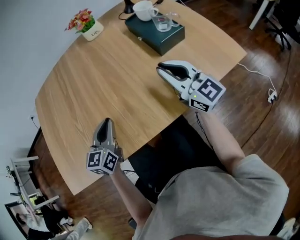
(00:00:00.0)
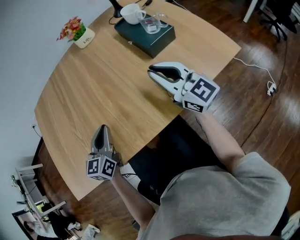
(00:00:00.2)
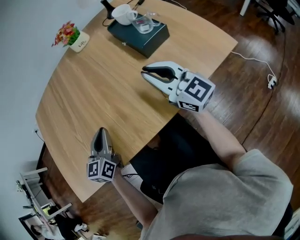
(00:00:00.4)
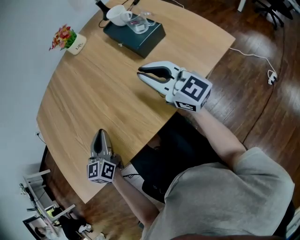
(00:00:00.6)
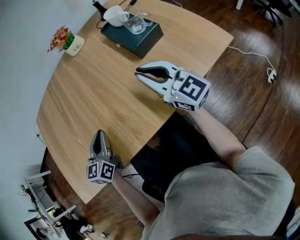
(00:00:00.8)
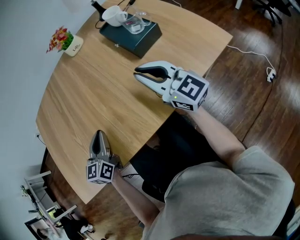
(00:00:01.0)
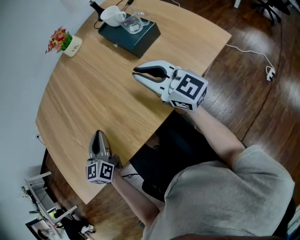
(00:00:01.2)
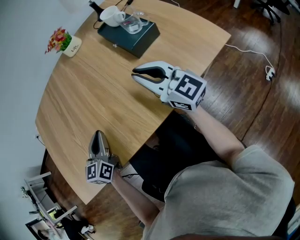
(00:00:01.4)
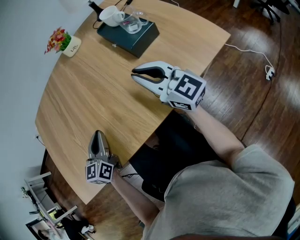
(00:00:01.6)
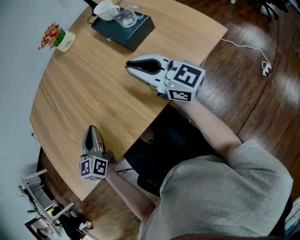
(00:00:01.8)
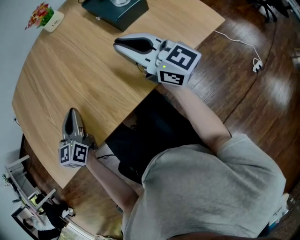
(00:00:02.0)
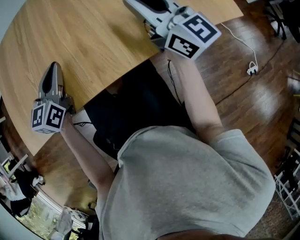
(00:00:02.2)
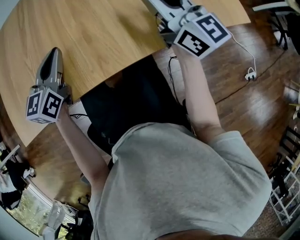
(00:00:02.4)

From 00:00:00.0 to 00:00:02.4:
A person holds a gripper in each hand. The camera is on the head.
From 00:00:00.0 to 00:00:01.2: Neither gripper changes place.
From 00:00:01.2 to 00:00:02.4: The grippers move only a little.

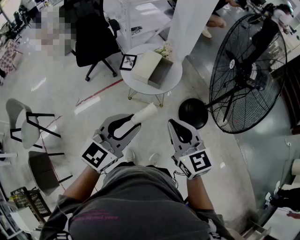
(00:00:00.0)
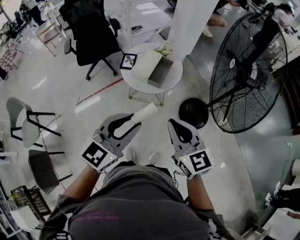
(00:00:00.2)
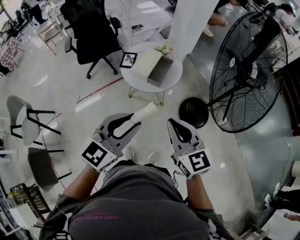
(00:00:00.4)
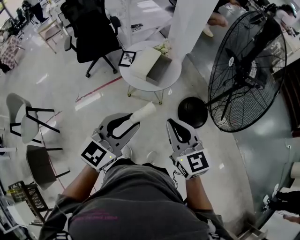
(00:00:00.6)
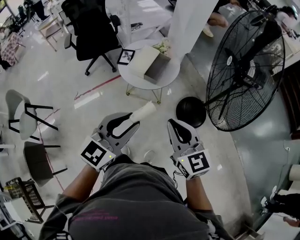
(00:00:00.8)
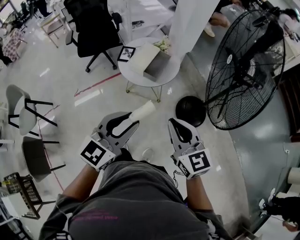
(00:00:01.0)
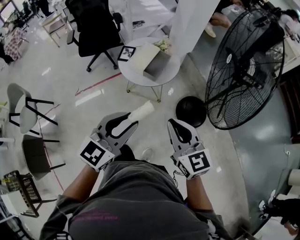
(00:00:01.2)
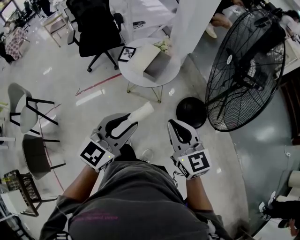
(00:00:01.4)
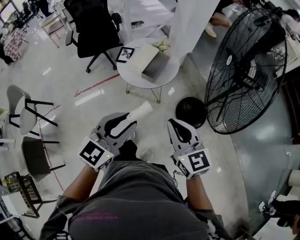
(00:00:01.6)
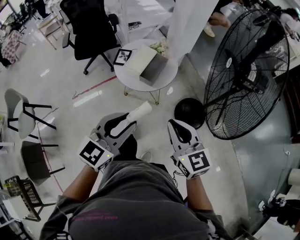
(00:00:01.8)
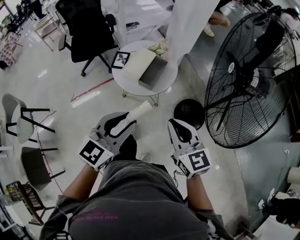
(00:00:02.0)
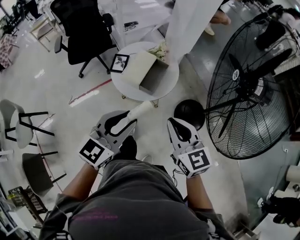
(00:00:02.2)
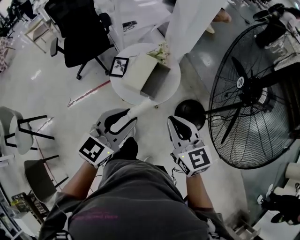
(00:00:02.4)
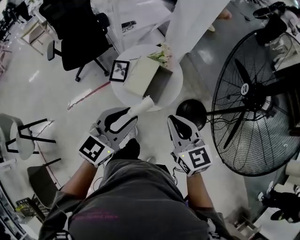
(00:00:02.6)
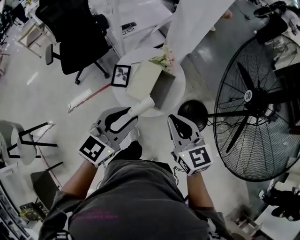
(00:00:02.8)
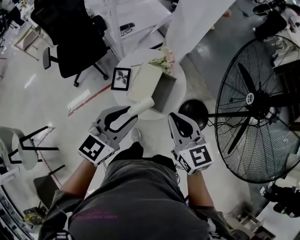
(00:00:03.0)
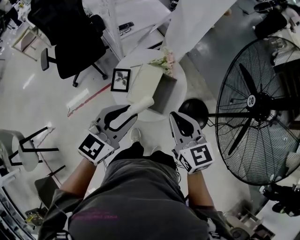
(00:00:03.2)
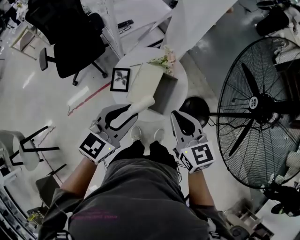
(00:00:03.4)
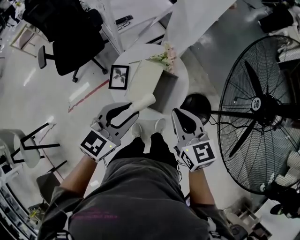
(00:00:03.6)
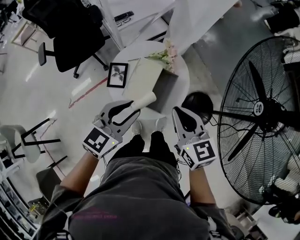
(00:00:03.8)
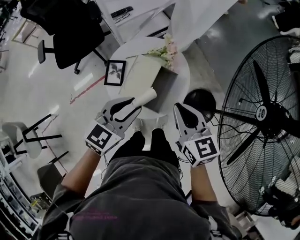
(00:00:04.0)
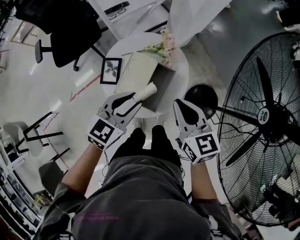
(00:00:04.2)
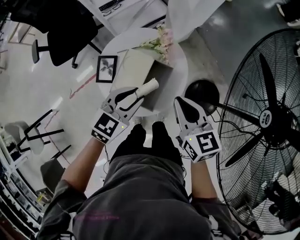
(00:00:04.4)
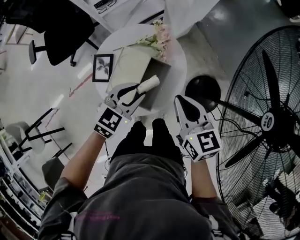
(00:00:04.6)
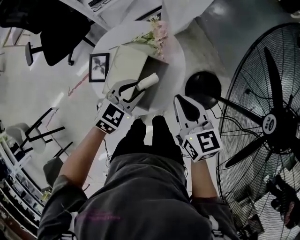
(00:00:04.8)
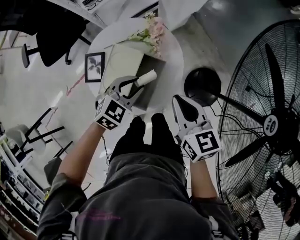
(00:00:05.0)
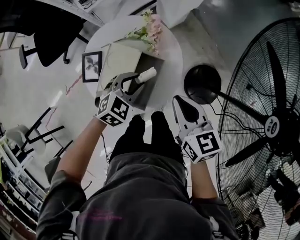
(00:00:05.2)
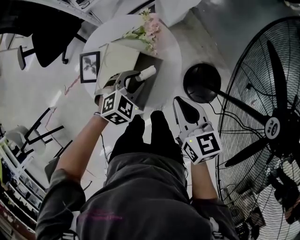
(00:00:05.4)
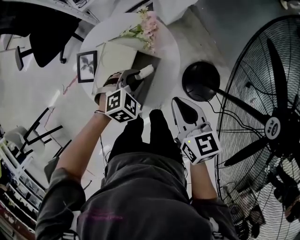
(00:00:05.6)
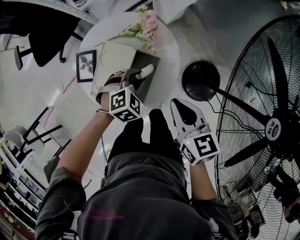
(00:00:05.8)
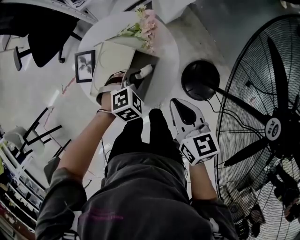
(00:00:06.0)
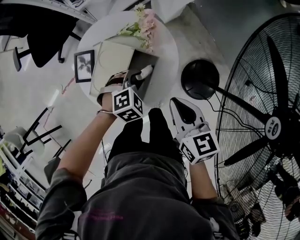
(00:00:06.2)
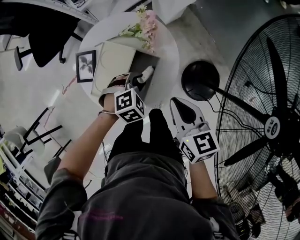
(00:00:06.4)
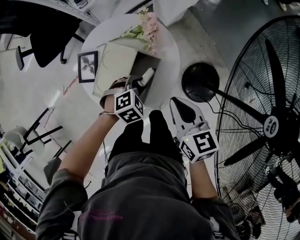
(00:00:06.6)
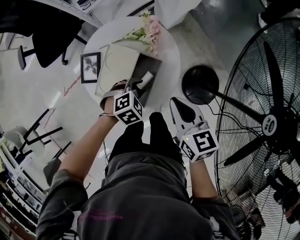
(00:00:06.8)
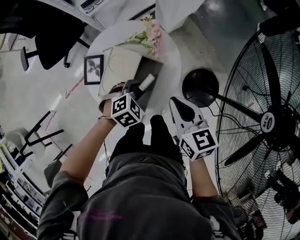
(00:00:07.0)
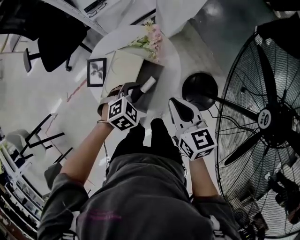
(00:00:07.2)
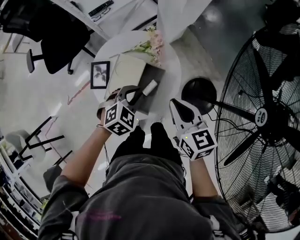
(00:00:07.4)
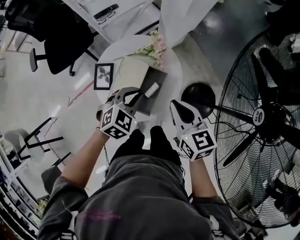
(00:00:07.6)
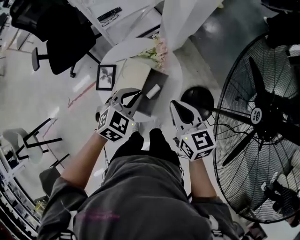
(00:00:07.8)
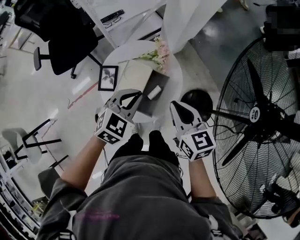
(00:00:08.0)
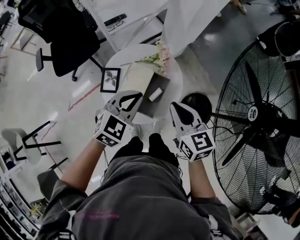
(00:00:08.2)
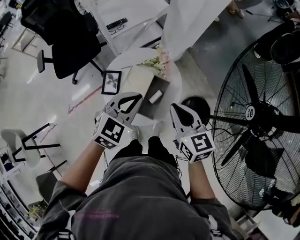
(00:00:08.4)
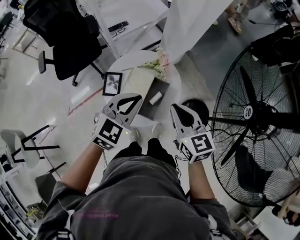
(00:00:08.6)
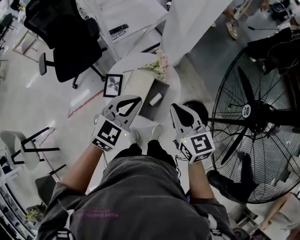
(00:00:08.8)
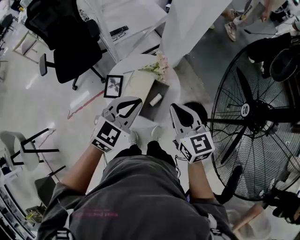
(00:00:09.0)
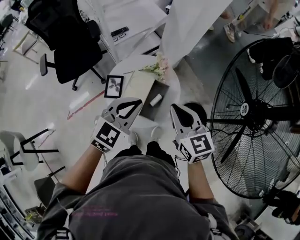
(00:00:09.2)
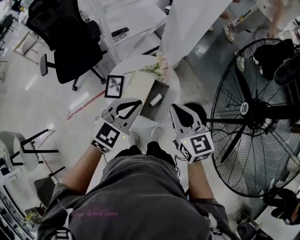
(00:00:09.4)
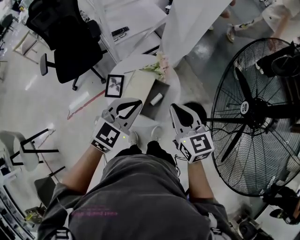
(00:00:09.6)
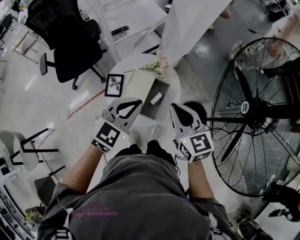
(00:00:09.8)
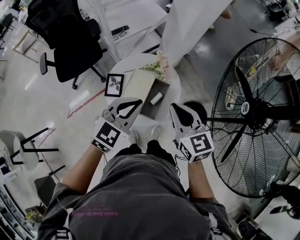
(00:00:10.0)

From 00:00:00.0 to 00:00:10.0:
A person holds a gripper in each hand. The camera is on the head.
From 00:00:00.0 to 00:00:01.4: Both grippers travel together to the right, roughly 5 cm.
From 00:00:01.4 to 00:00:02.8: The right gripper shifts roughly 30 cm forward and to the left. Meanwhile the left gripper is displaced forward by roughly 30 cm.
From 00:00:02.8 to 00:00:04.2: Both grippers travel together forward and downward, roughly 20 cm.
From 00:00:04.2 to 00:00:05.8: The left gripper moves downward and to the right, some 25 cm, and angles its fingers downward, by about 30 degrees. Meanwhile the right gripper goes about 15 cm downward and to the right.
From 00:00:05.8 to 00:00:07.2: The left gripper shifts by some 5 cm.
From 00:00:07.2 to 00:00:08.6: The left gripper travels upward by about 25 cm, tips its fingers upward by roughly 30 degrees, and closes. Meanwhile the right gripper moves upward and to the left, roughly 15 cm.
From 00:00:08.6 to 00:00:10.0: The grippers move only a little.

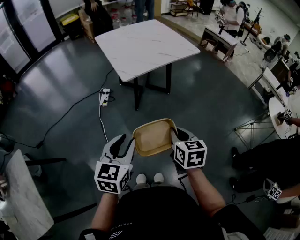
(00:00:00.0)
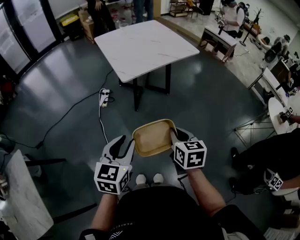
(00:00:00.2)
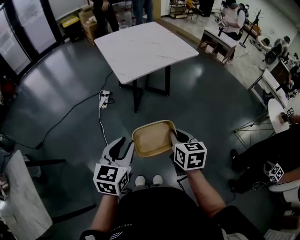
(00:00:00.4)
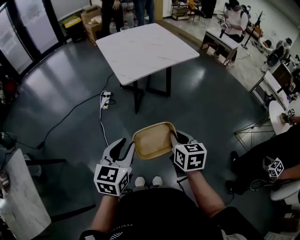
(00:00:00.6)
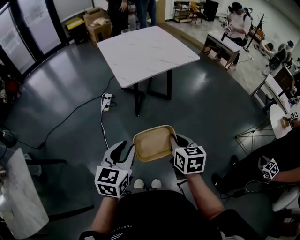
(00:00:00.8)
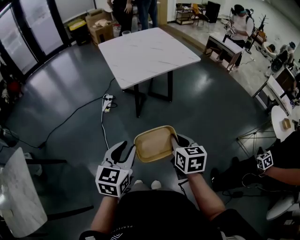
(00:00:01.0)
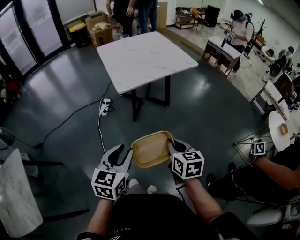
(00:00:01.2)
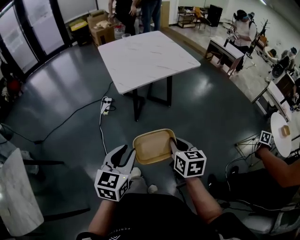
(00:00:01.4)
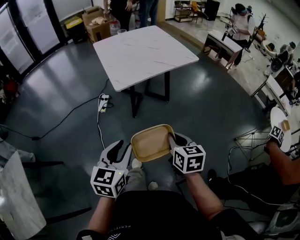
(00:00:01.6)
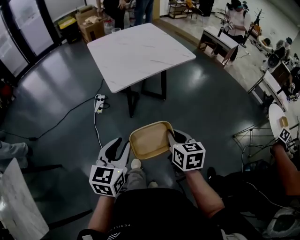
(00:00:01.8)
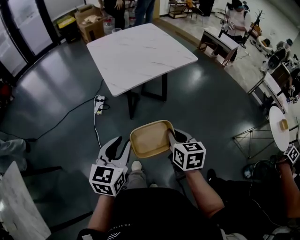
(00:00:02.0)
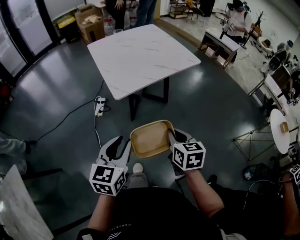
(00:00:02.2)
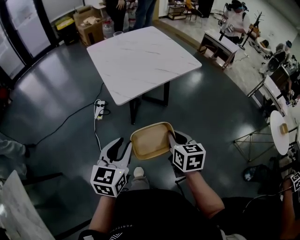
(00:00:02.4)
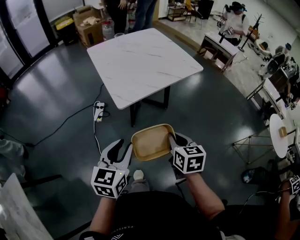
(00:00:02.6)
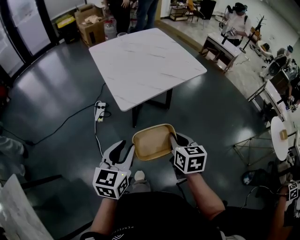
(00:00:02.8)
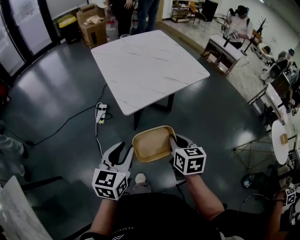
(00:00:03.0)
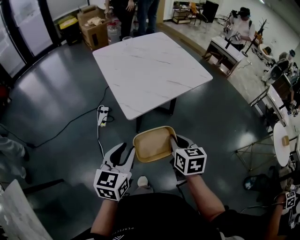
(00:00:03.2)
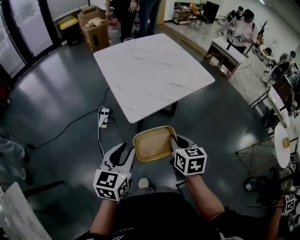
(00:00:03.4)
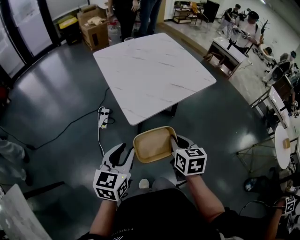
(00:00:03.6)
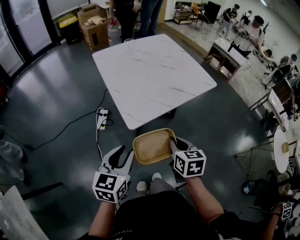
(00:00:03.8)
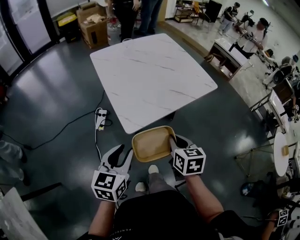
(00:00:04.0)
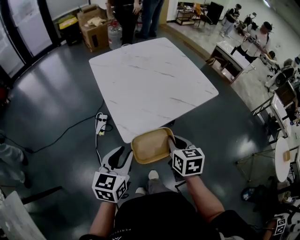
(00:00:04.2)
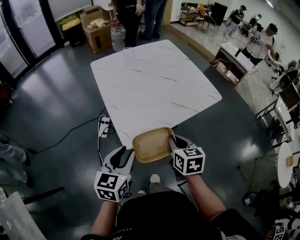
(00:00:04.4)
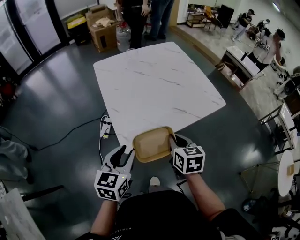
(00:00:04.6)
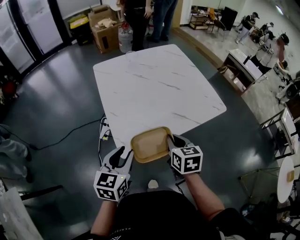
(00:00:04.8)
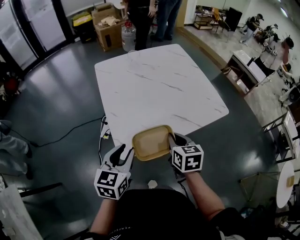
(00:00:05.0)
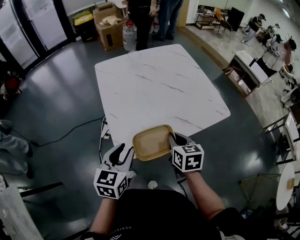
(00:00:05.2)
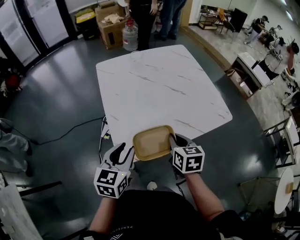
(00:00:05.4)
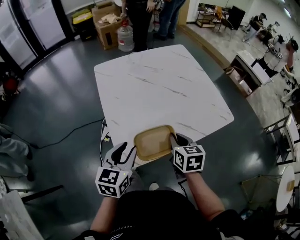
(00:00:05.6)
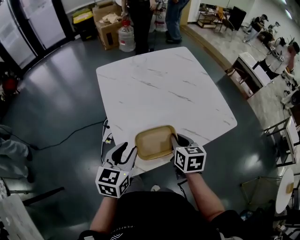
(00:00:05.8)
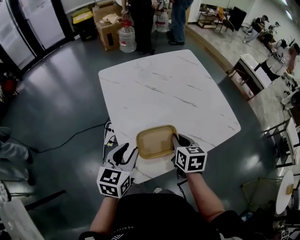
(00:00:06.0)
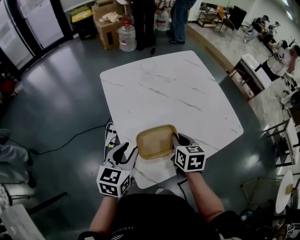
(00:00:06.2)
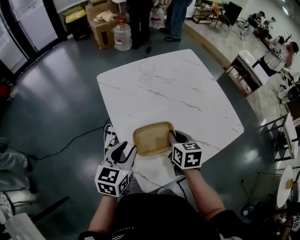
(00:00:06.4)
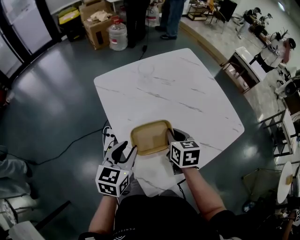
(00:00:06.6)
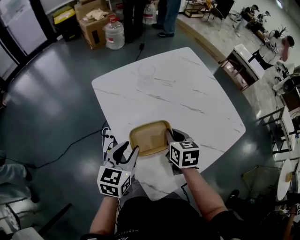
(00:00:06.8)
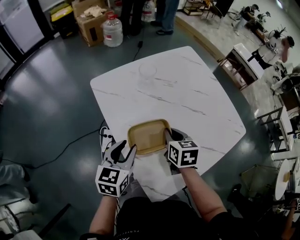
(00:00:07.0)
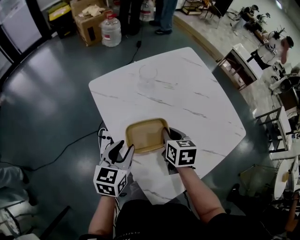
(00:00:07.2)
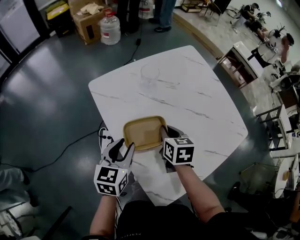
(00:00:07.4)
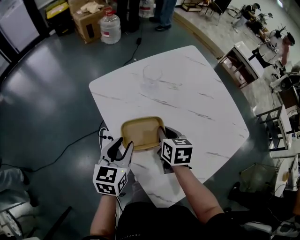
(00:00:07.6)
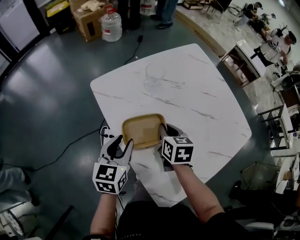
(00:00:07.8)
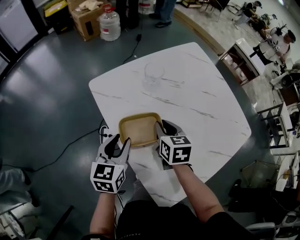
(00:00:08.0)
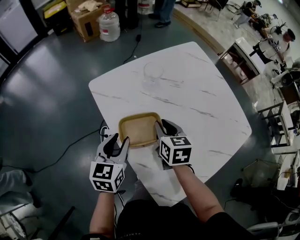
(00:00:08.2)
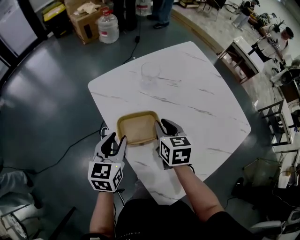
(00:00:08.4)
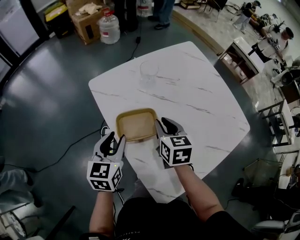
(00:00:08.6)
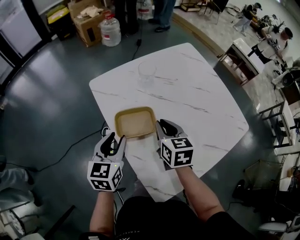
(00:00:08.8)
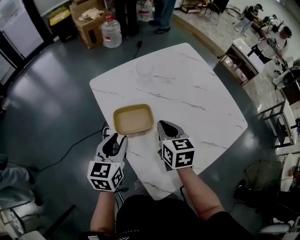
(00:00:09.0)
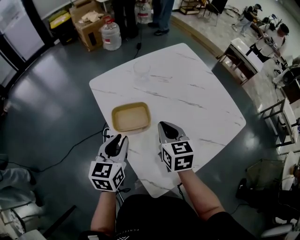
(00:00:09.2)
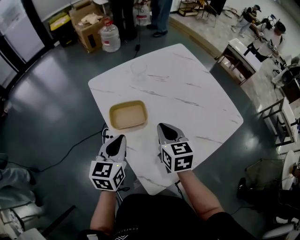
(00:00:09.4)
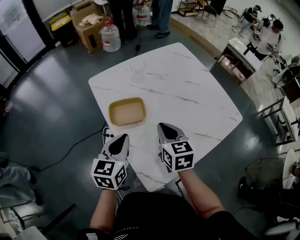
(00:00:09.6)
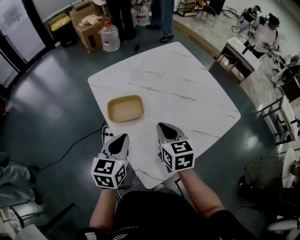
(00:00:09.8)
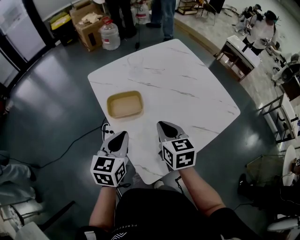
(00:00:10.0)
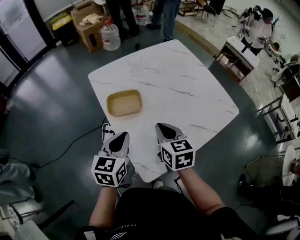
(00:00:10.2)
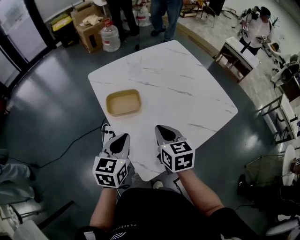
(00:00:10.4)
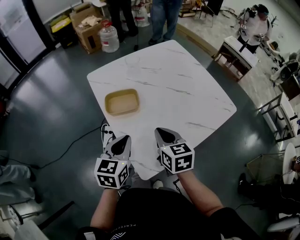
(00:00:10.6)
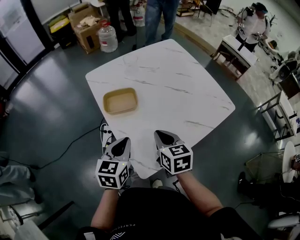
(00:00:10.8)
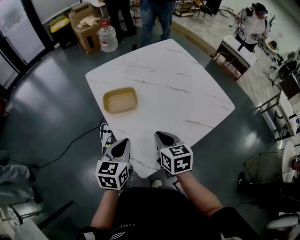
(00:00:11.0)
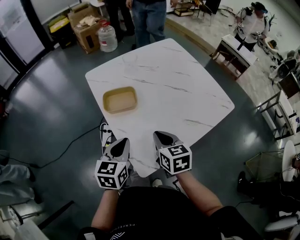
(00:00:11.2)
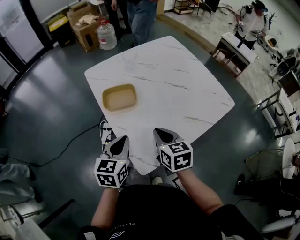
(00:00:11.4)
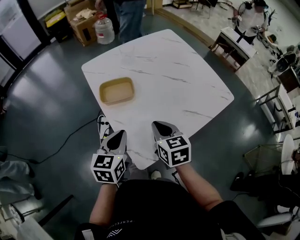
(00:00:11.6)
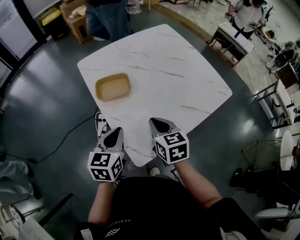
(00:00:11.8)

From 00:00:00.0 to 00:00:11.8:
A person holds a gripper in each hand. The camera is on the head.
From 00:00:00.0 to 00:00:01.4: The grippers both shift to the right by roughly 5 cm.
From 00:00:01.4 to 00:00:03.0: Both grippers travel together forward and to the left, some 25 cm.
From 00:00:03.0 to 00:00:04.4: The grippers both shift forward by roughly 20 cm.
From 00:00:04.4 to 00:00:06.0: Both grippers travel together forward, some 20 cm.
From 00:00:06.0 to 00:00:07.4: The grippers both shift forward and to the left by approximately 20 cm.
From 00:00:07.4 to 00:00:08.8: The right gripper ends up about 5 cm from where it was.
From 00:00:08.8 to 00:00:10.4: The left gripper moves backward and to the right, roughly 15 cm, and closes its fingers. Meanwhile the right gripper heads backward, covering about 15 cm.
From 00:00:10.4 to 00:00:11.8: The right gripper moves some 5 cm.
